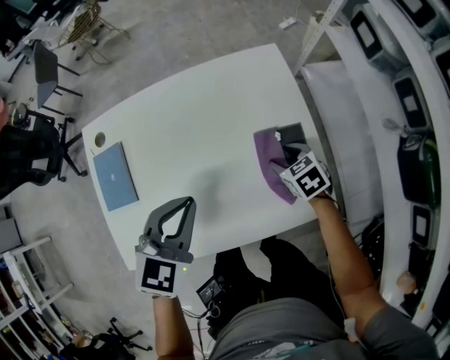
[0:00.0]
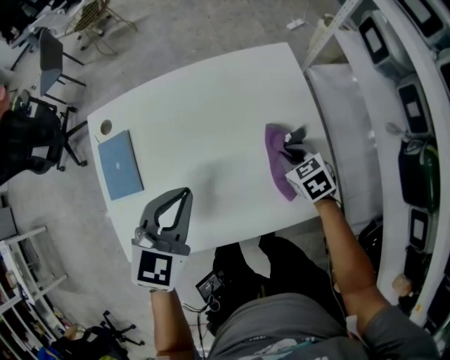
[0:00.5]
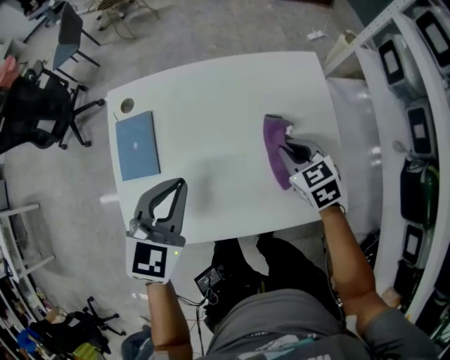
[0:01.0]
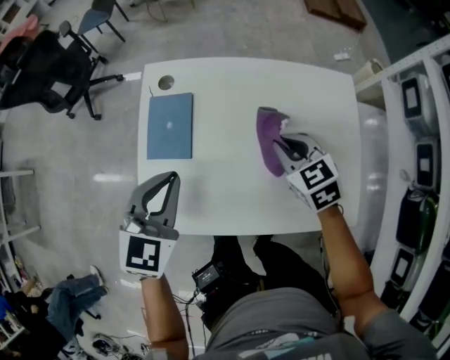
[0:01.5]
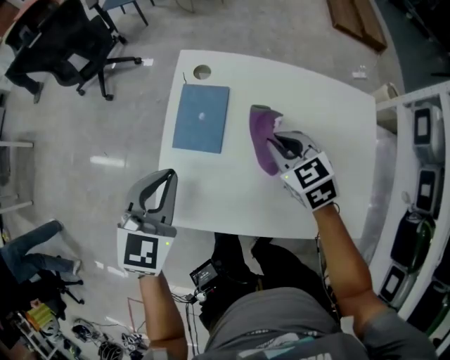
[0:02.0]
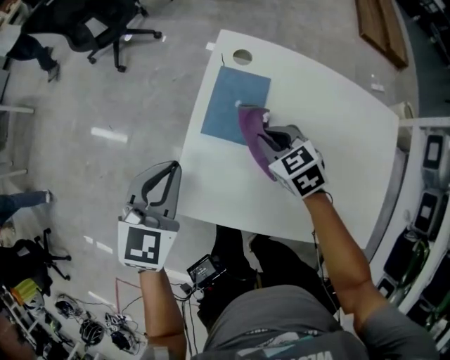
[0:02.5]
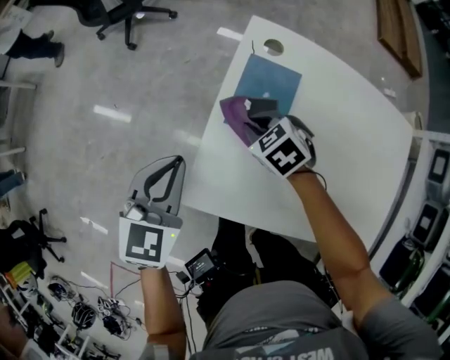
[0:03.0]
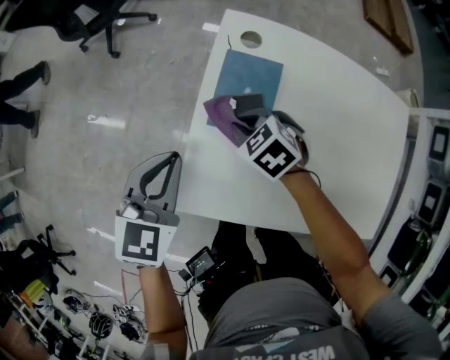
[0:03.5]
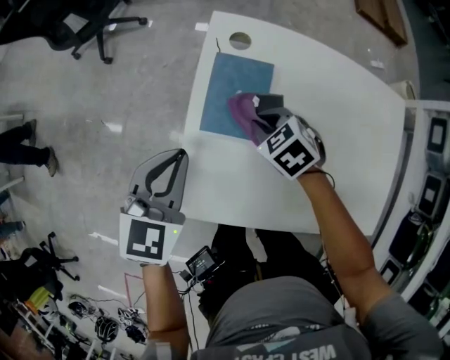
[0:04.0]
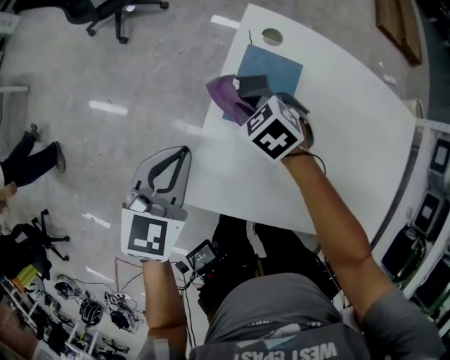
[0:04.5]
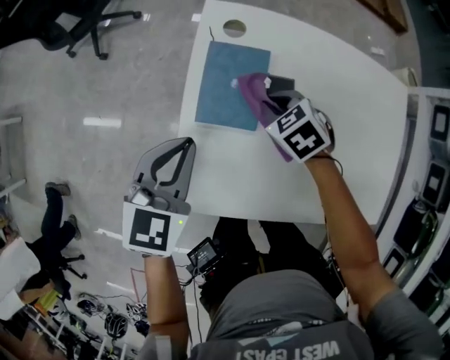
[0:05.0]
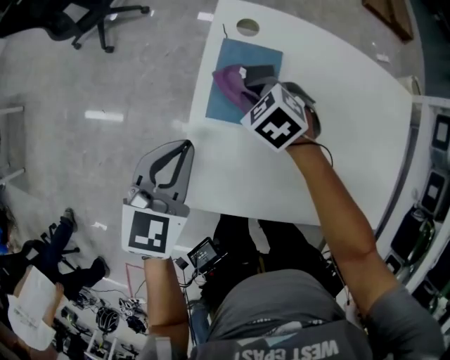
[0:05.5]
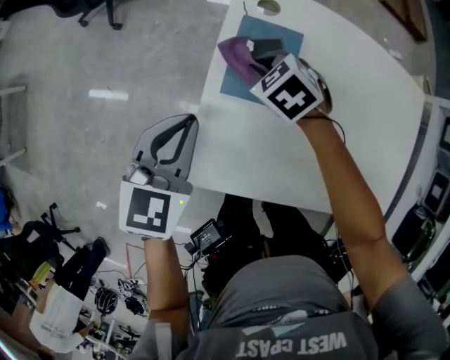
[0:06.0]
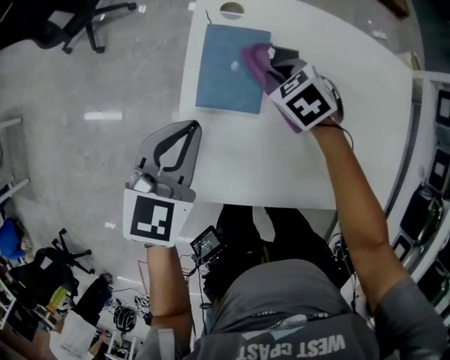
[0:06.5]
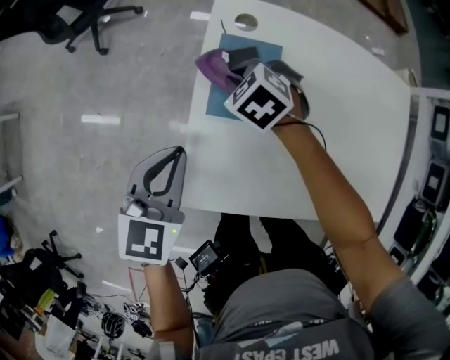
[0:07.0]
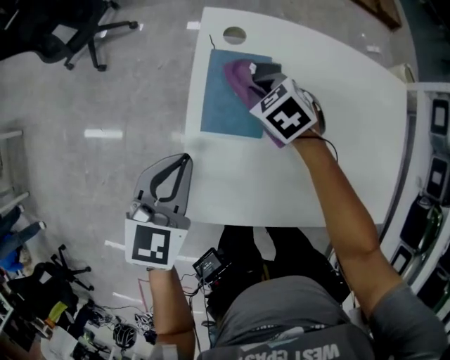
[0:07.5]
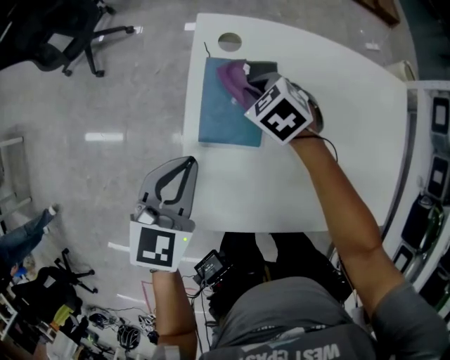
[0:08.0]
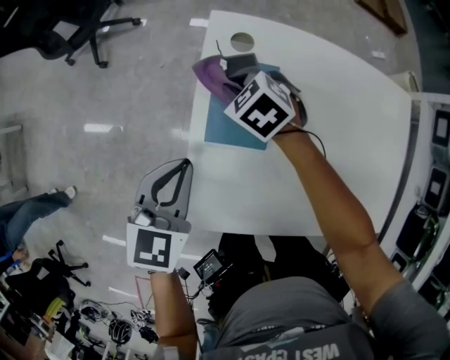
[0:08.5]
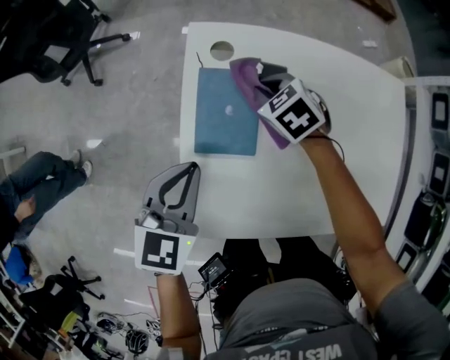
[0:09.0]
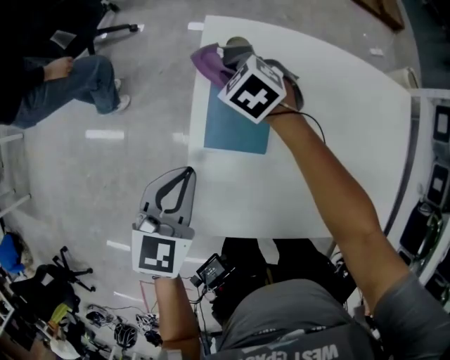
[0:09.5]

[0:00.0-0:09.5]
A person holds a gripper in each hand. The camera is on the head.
0:00.0 to 0:02.0: The right gripper goes approximately 35 cm to the left and upward, turns by about 30 degrees, and closes up, while the left gripper is displaced to the left by some 30 cm, and changes its angle by some 30 degrees.
0:02.0 to 0:04.0: The left gripper moves downward and to the left, roughly 10 cm. The right gripper moves downward, to the left and forward, roughly 20 cm, and swivels roughly 20 degrees.
0:04.0 to 0:05.5: The right gripper swings left and right, about 15 cm each way, with 2 reversals.
0:05.5 to 0:07.5: The right gripper moves left and right over about 10 cm, changing direction 2 times.
0:07.5 to 0:09.5: The right gripper goes left and right, approximately 10 cm each way, reversing 2 times.

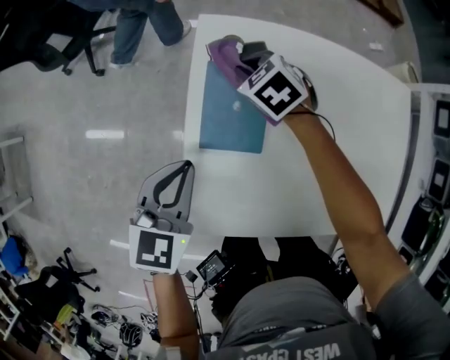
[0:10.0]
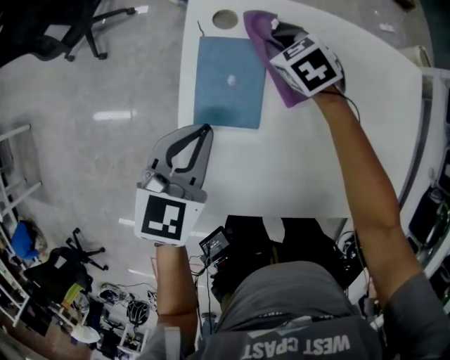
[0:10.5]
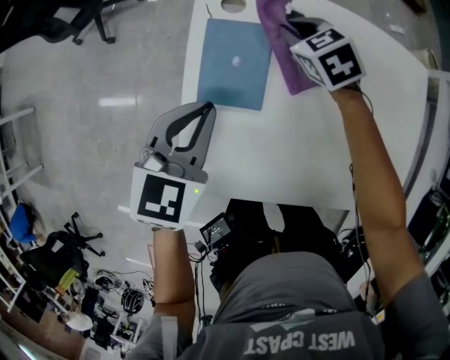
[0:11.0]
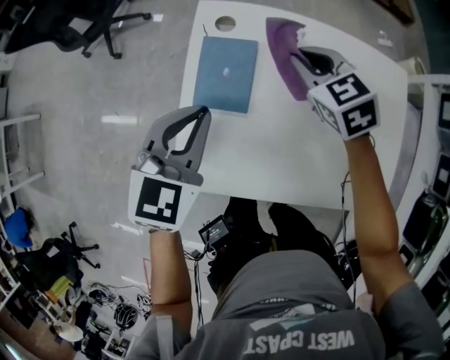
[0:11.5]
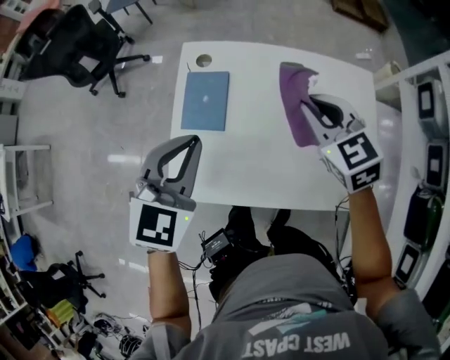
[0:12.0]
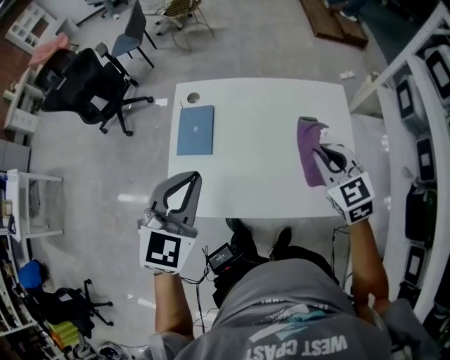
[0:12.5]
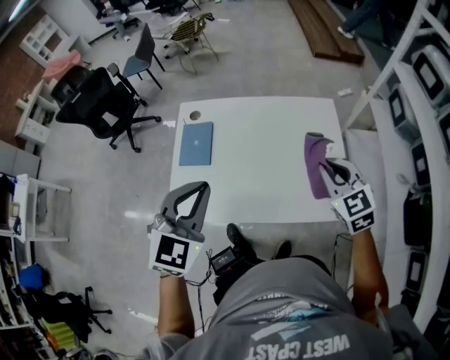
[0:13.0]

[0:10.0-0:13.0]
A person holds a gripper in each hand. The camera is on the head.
0:10.0 to 0:11.5: The right gripper heads upward, to the right and backward, covering approximately 20 cm. Meanwhile the left gripper heads upward and to the right, covering approximately 10 cm.
0:11.5 to 0:13.0: The left gripper heads upward, to the right and backward, covering approximately 20 cm, while the right gripper is displaced to the right, backward and upward by about 35 cm.

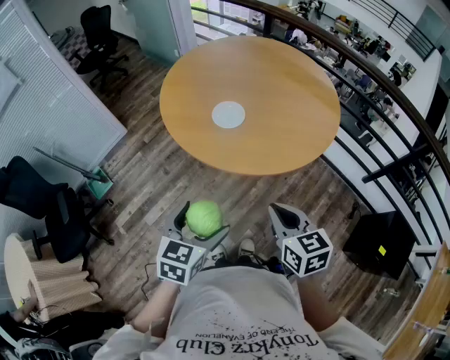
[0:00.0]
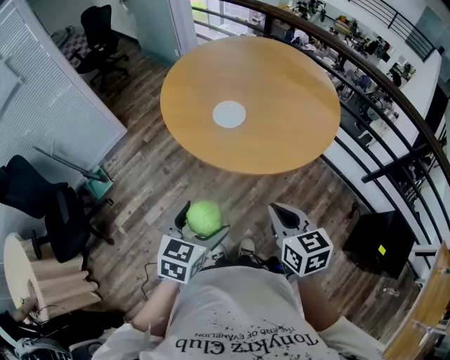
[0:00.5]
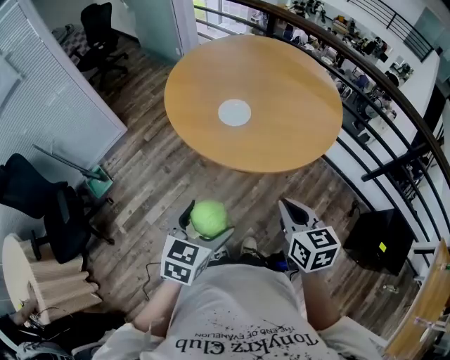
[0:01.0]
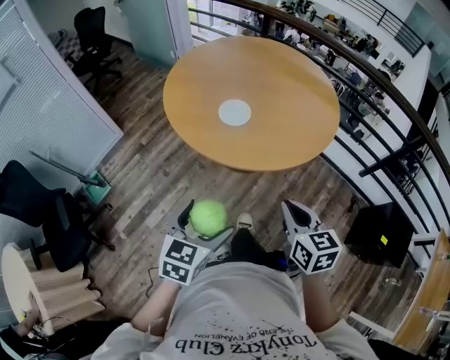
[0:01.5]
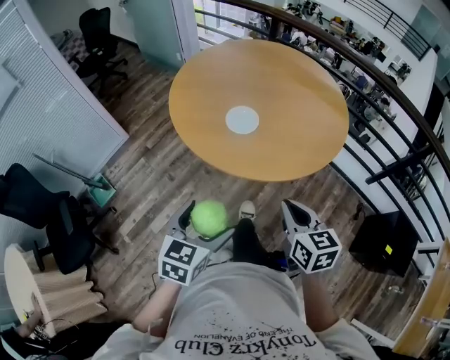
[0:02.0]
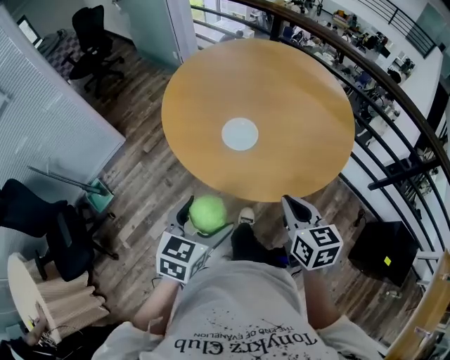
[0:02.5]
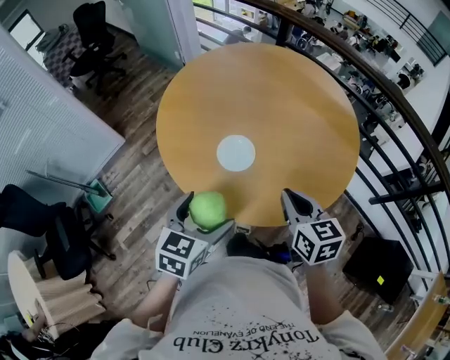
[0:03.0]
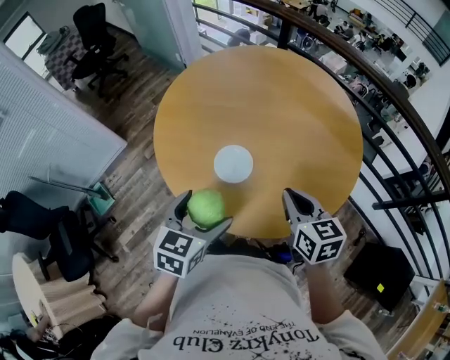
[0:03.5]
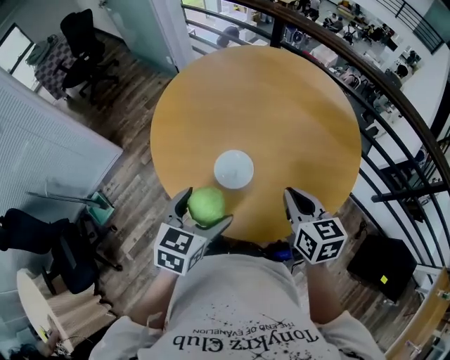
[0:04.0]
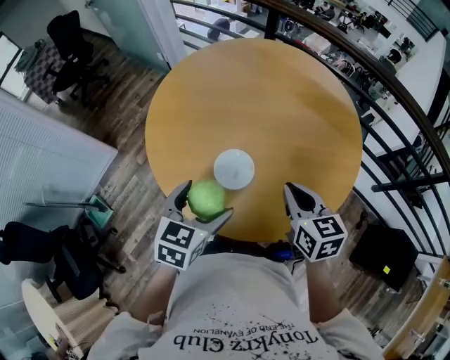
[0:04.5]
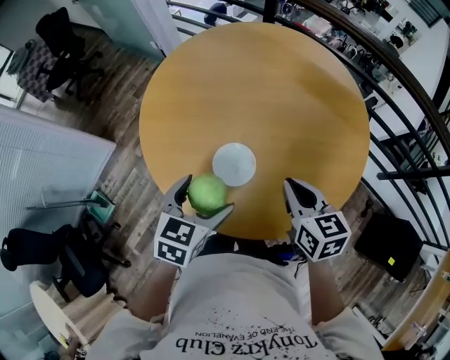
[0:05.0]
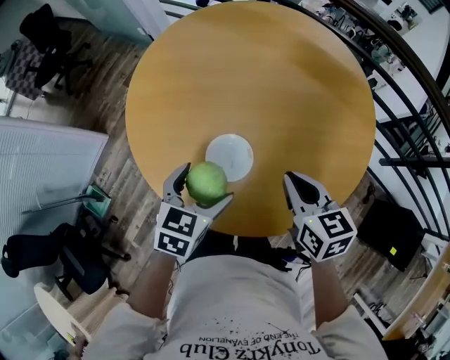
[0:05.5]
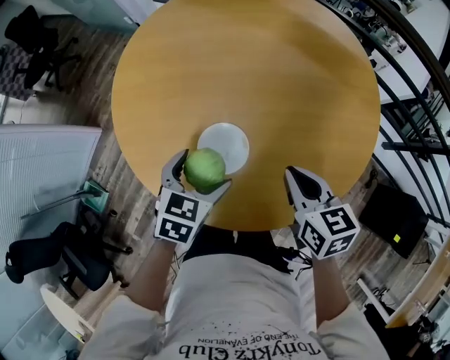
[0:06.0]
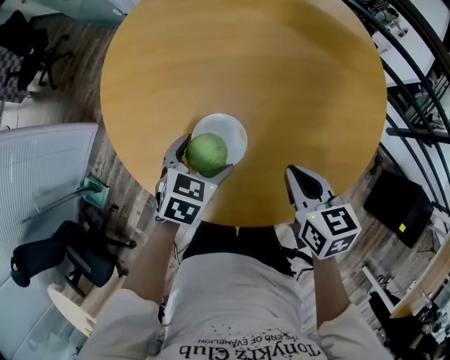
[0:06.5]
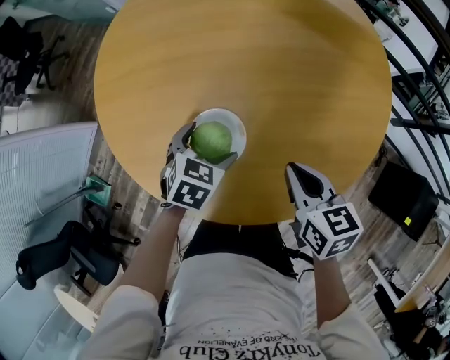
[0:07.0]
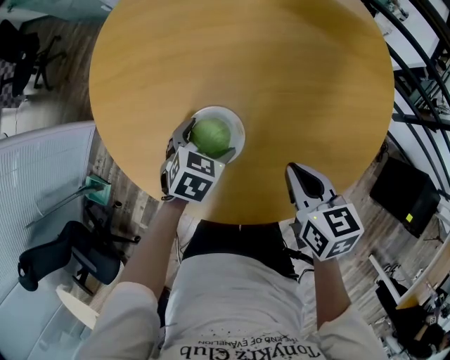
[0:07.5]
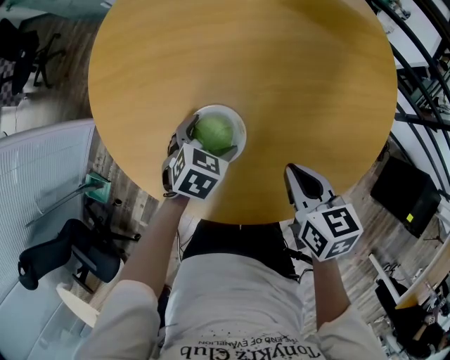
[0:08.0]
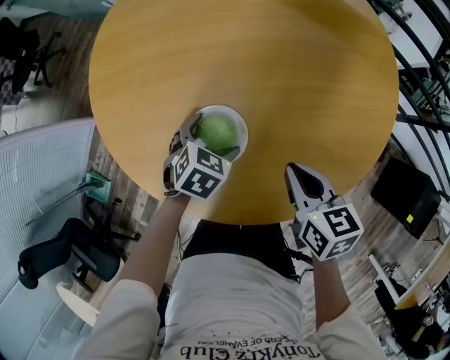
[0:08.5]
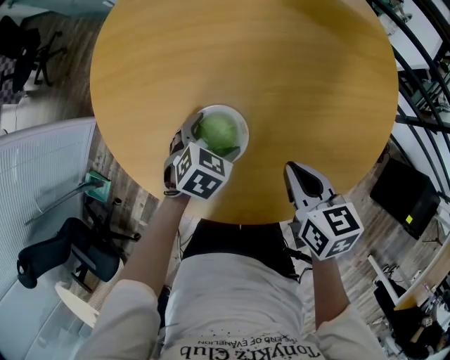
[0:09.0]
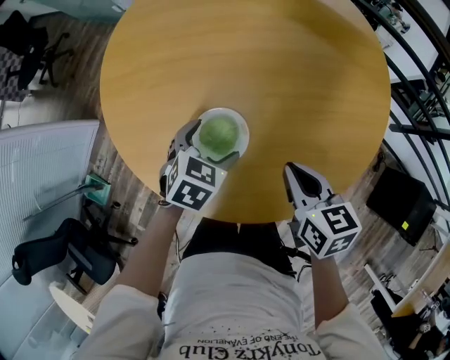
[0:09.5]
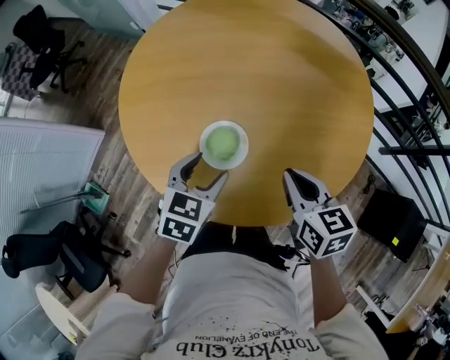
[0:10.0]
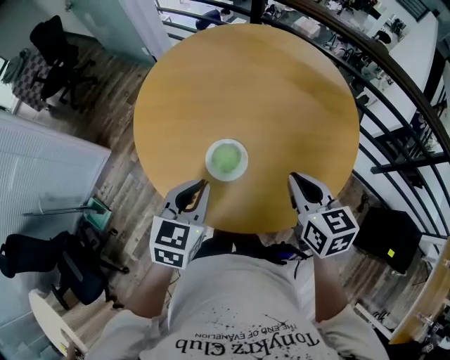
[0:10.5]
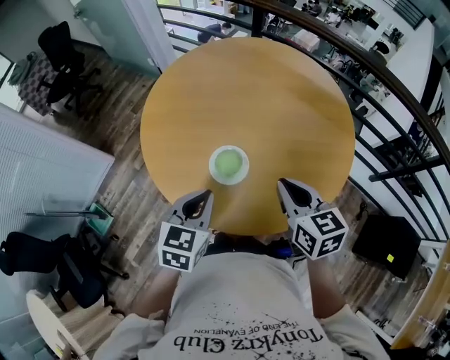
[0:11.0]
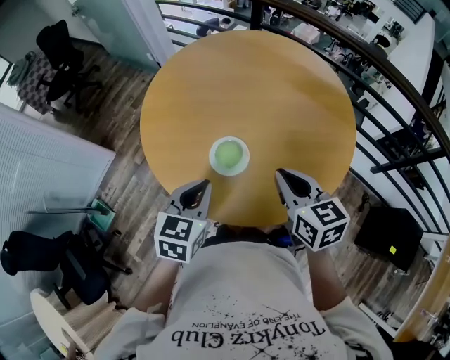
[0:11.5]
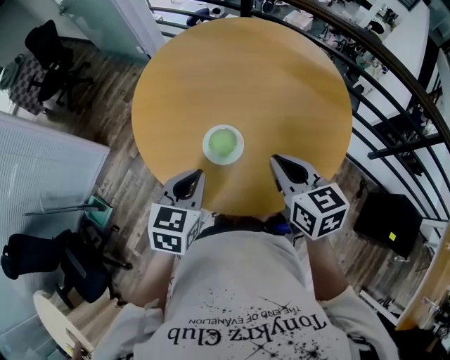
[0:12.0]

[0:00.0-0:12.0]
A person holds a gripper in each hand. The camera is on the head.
0:00.0 to 0:02.0: The left gripper goes approximately 5 cm to the left.
0:02.0 to 0:04.0: Both grippers travel together forward, some 25 cm.
0:04.0 to 0:06.0: The right gripper is displaced downward by some 5 cm. Meanwhile the left gripper goes approximately 15 cm downward and forward.
0:06.0 to 0:08.0: The left gripper shifts about 10 cm downward. The right gripper moves downward, approximately 5 cm.
0:08.0 to 0:10.0: The right gripper moves upward, about 10 cm; the left gripper shifts roughly 15 cm upward and backward, and closes.
0:10.0 to 0:12.0: The right gripper goes approximately 10 cm upward. The left gripper goes some 10 cm upward and backward, and closes its fingers.

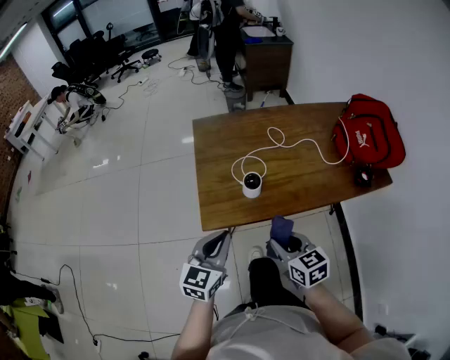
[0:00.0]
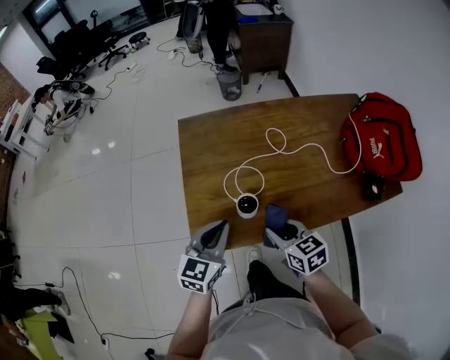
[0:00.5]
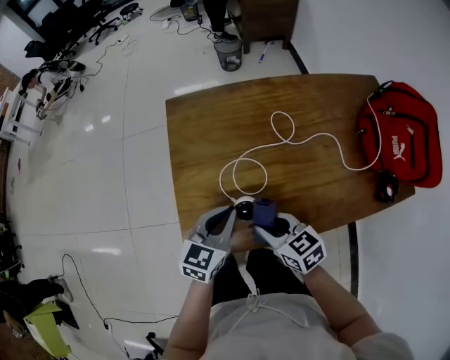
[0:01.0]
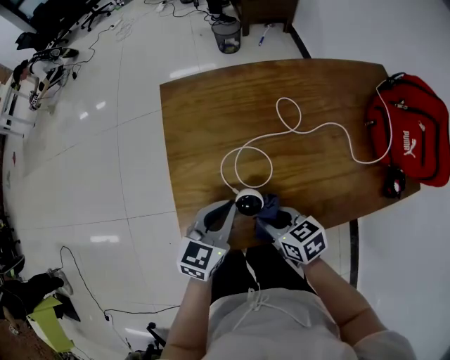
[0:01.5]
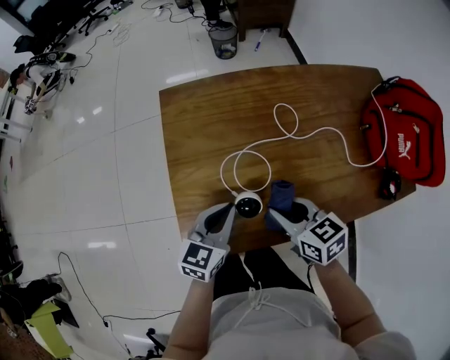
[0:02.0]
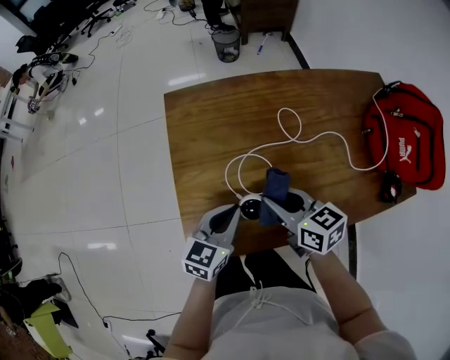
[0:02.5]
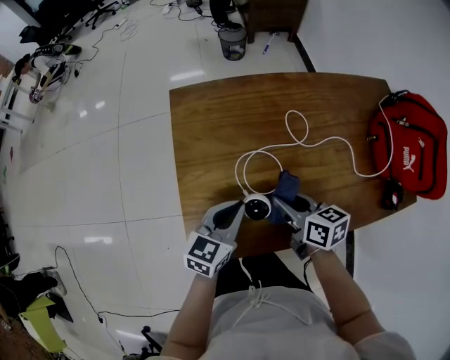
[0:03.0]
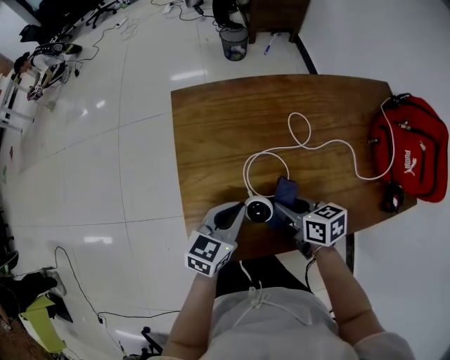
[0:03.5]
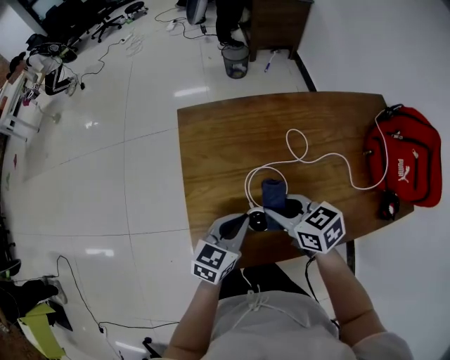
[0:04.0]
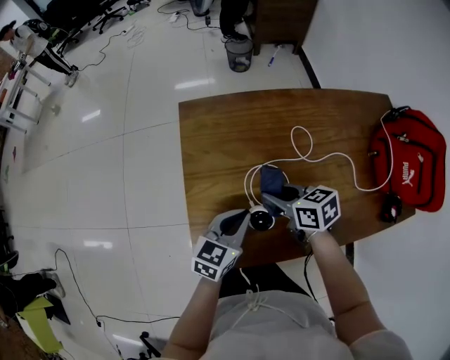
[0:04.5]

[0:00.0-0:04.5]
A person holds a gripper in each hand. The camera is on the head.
0:00.0 to 0:02.0: The left gripper is displaced forward and downward by about 25 cm, while the right gripper shifts approximately 25 cm forward.
0:02.0 to 0:04.5: The right gripper moves forward, some 10 cm.
